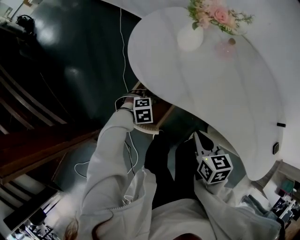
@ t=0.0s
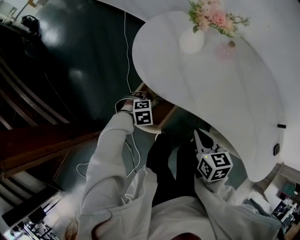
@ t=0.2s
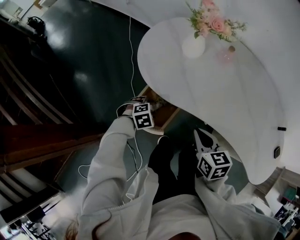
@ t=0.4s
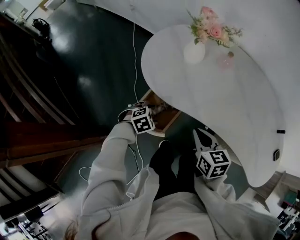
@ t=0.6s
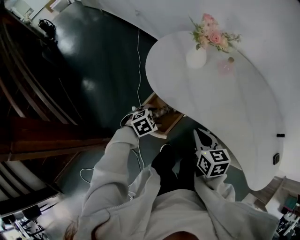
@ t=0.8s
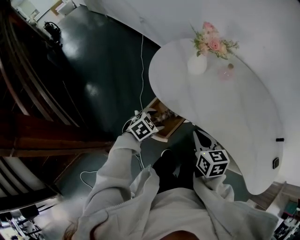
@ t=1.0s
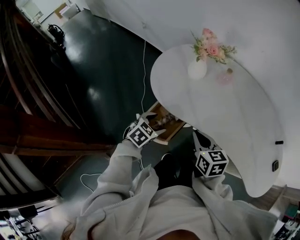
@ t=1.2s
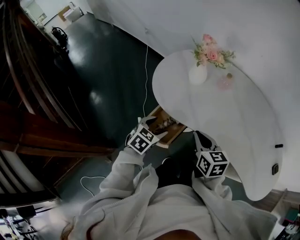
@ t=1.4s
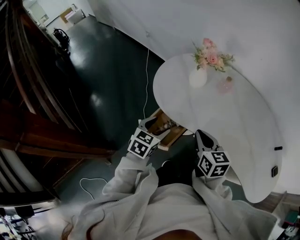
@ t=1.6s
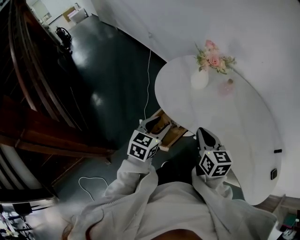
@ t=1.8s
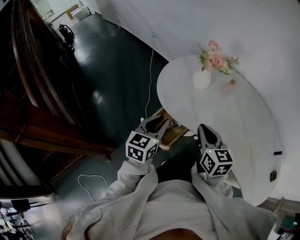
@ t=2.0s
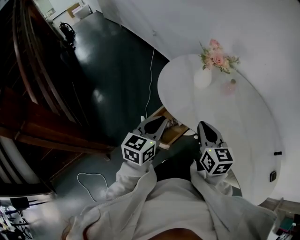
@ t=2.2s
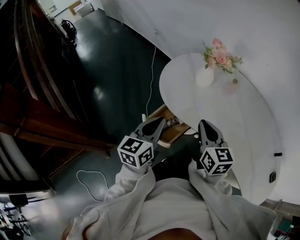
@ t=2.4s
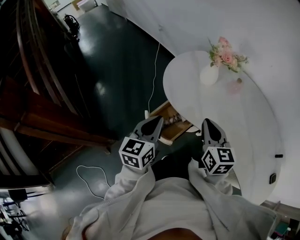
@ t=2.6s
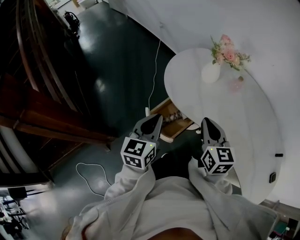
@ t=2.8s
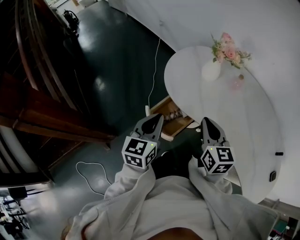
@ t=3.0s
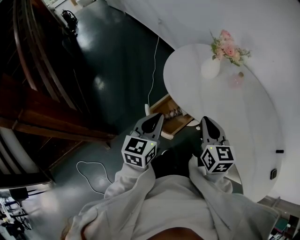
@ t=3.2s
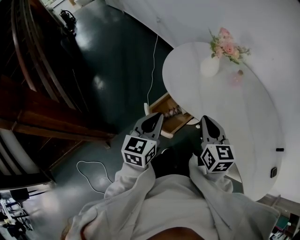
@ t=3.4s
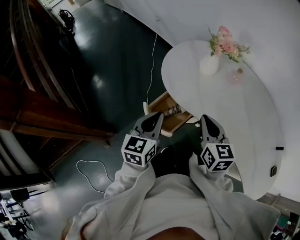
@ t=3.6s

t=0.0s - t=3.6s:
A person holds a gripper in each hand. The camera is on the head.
t=0.0s - t=1.8s: The left gripper heads upward, covering roughly 30 cm, points its fingers approximately 50 degrees further upward, and closes. The right gripper is displaced upward by about 10 cm, and changes its angle by some 20 degrees.
t=1.8s - t=3.6s: The left gripper changes place by roughly 5 cm, and closes up.

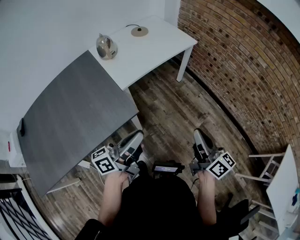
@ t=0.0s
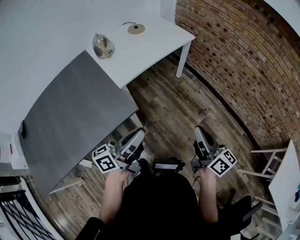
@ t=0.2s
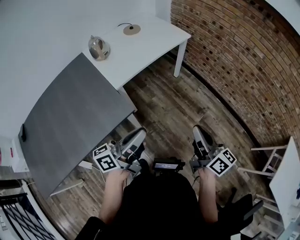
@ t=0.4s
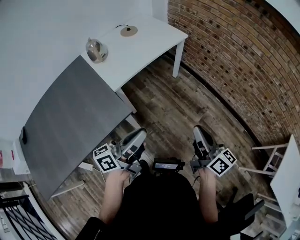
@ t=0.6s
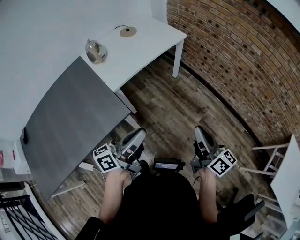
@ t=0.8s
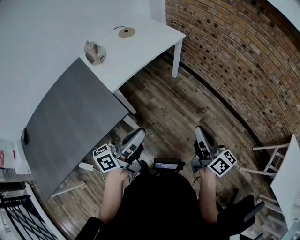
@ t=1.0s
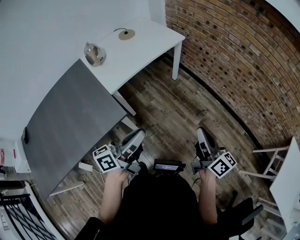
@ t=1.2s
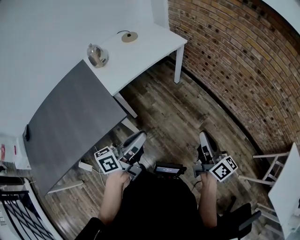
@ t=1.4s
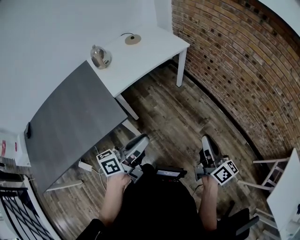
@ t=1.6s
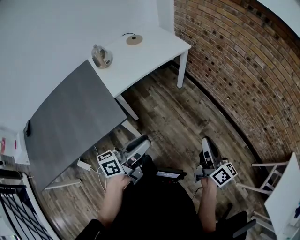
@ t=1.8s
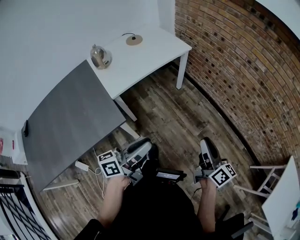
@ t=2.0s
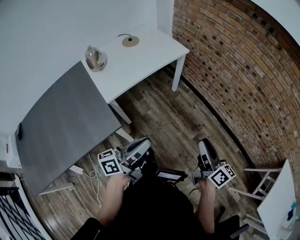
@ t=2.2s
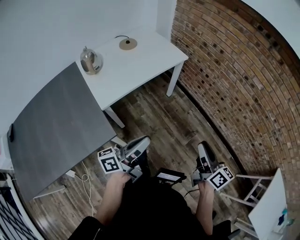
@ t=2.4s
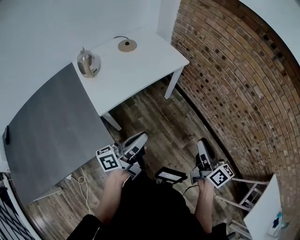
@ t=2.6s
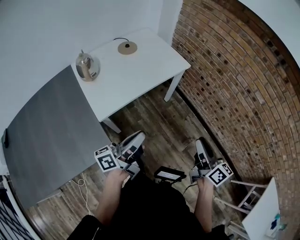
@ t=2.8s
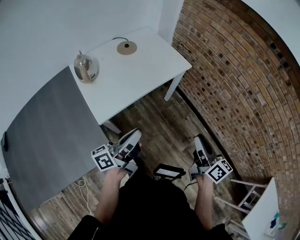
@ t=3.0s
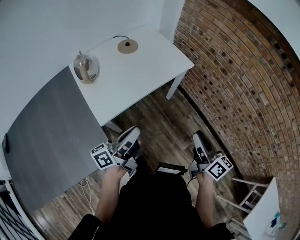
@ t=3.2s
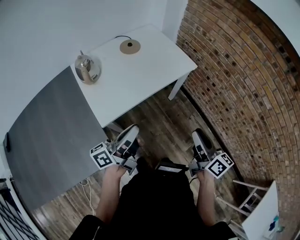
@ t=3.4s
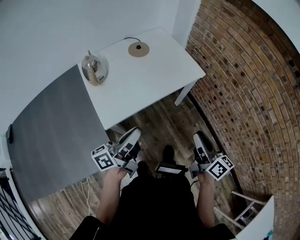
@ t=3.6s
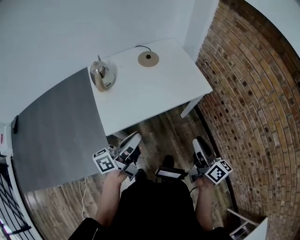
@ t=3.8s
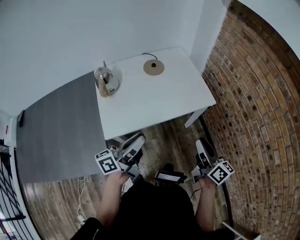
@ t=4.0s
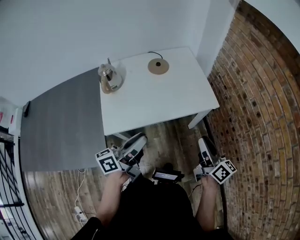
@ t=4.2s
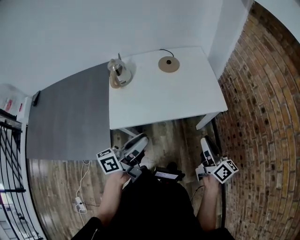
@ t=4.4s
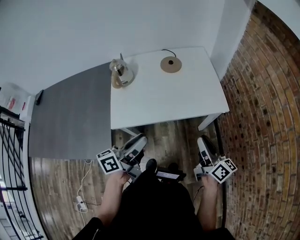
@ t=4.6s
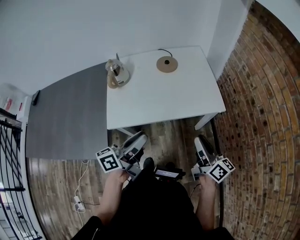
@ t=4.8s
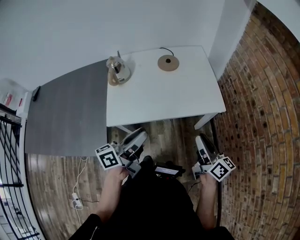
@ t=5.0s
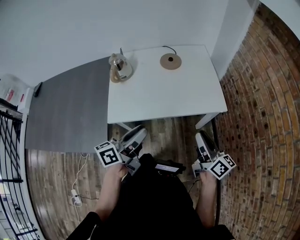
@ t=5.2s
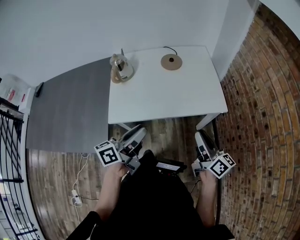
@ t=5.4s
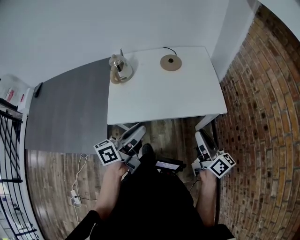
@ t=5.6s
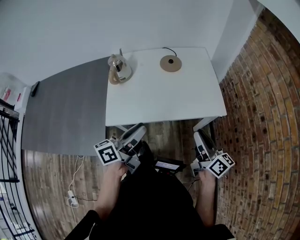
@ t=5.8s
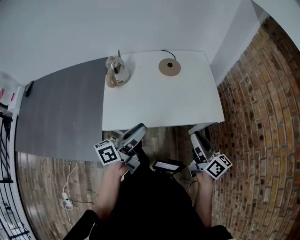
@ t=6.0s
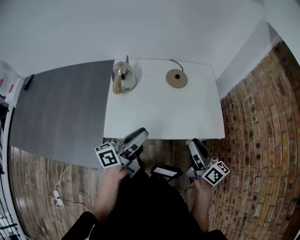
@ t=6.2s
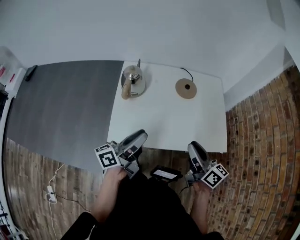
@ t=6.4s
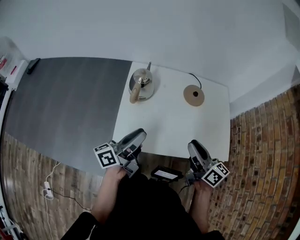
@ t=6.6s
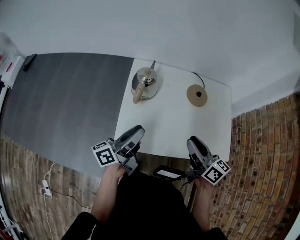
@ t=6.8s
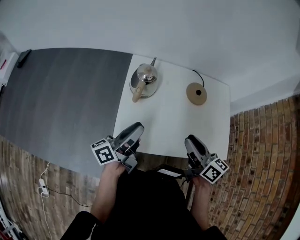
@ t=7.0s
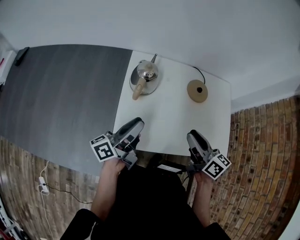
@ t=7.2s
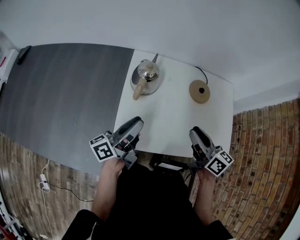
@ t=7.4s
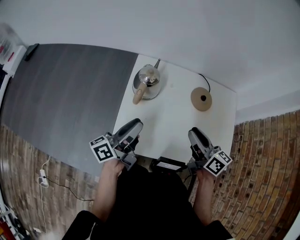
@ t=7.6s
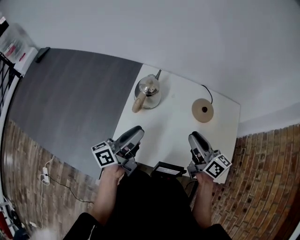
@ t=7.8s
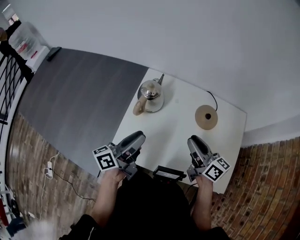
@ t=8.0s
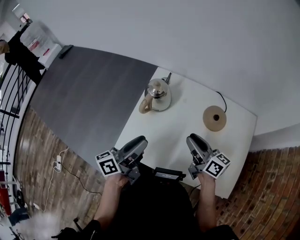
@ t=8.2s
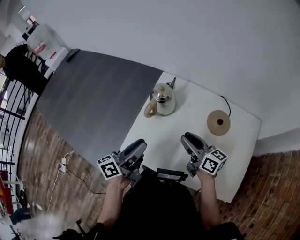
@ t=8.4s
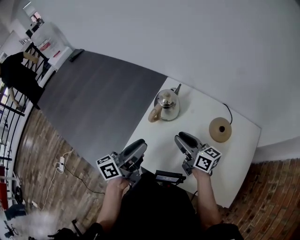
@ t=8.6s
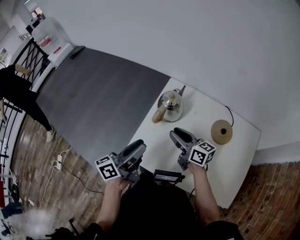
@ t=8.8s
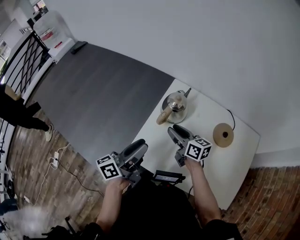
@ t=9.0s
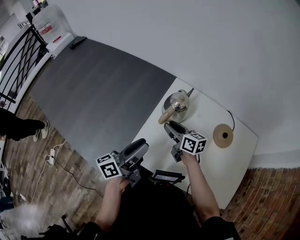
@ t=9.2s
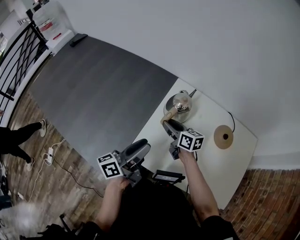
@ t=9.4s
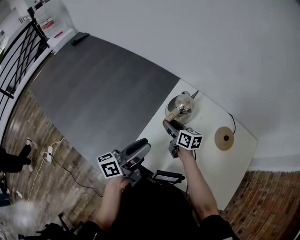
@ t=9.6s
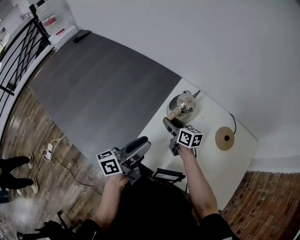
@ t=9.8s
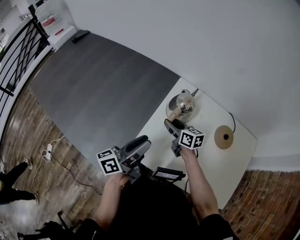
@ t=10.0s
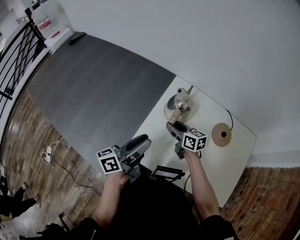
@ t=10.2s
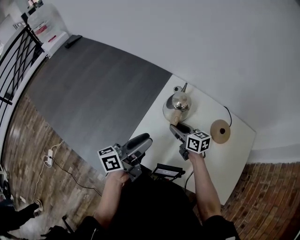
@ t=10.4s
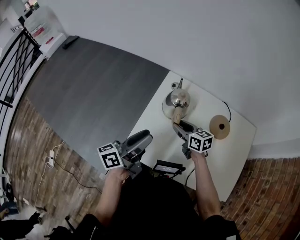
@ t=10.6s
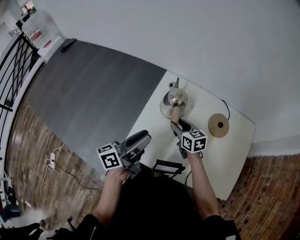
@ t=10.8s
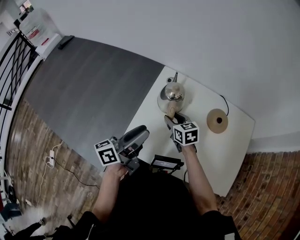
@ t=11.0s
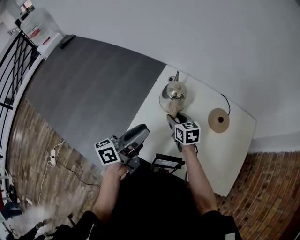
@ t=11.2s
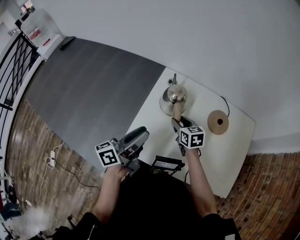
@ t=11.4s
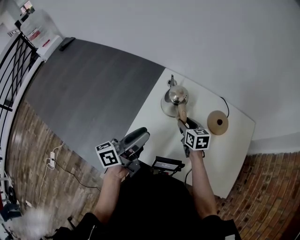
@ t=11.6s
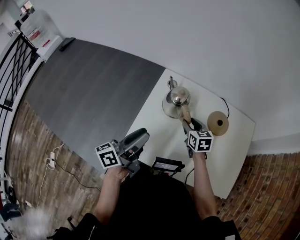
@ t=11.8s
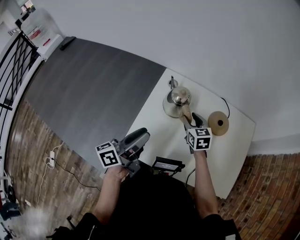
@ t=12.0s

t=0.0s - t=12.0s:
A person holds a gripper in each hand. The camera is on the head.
t=0.0s - t=1.6s: The two grippers go approximately 15 cm to the right.
t=1.6s - t=3.0s: Both grippers move forward, about 25 cm. The right gripper opens its fingers.
t=3.0s - t=4.4s: The left gripper moves about 10 cm, turns by about 30 degrees, and opens; the right gripper shifts by roughly 25 cm, and swivels some 30 degrees.
t=4.4s - t=6.0s: Both grippers move forward, some 5 cm.
t=6.0s - t=7.6s: Both grippers travel together forward and to the left, about 25 cm. The left gripper changes its angle by roughly 20 degrees. The right gripper swivels about 20 degrees.
t=7.6s - t=9.0s: The right gripper is displaced to the left, forward and downward by approximately 20 cm, and changes its angle by about 30 degrees.
t=9.0s - t=10.4s: The right gripper travels downward by approximately 5 cm.
t=10.4s - t=12.0s: The right gripper is displaced to the right by roughly 10 cm, and rotates approximately 30 degrees.

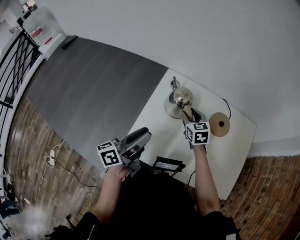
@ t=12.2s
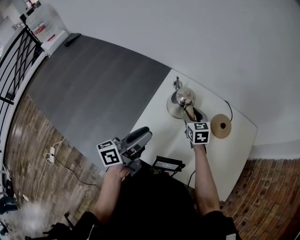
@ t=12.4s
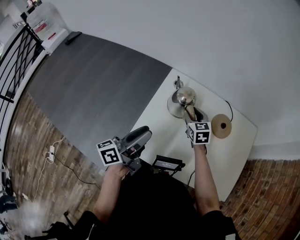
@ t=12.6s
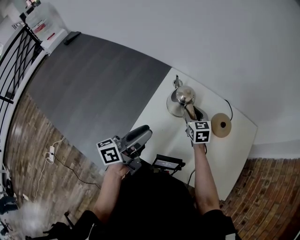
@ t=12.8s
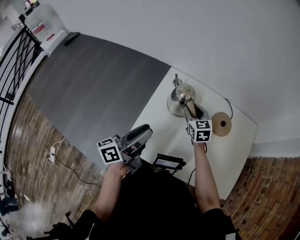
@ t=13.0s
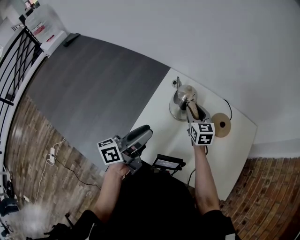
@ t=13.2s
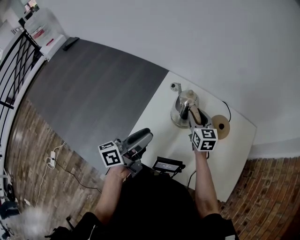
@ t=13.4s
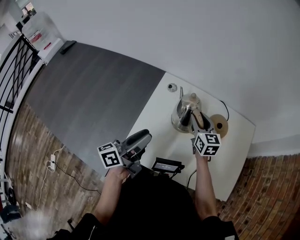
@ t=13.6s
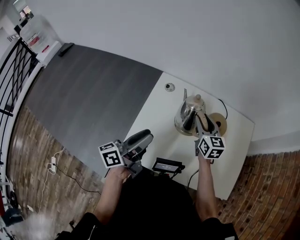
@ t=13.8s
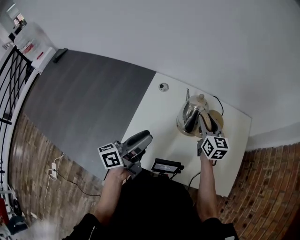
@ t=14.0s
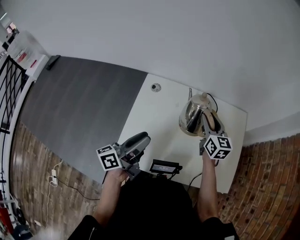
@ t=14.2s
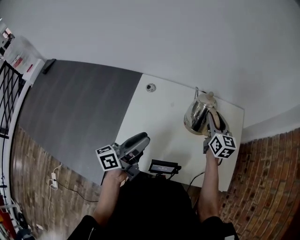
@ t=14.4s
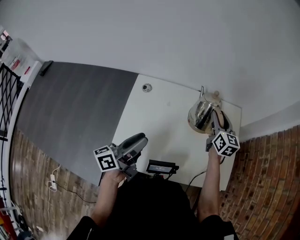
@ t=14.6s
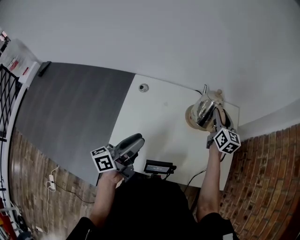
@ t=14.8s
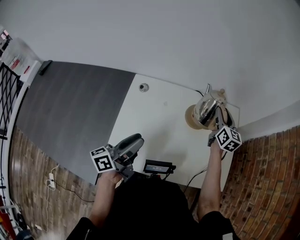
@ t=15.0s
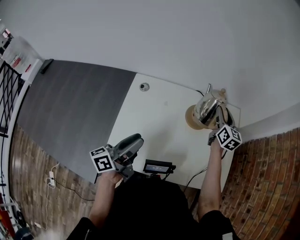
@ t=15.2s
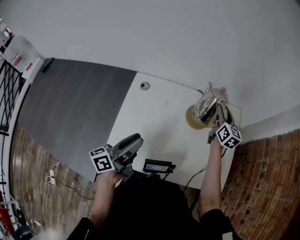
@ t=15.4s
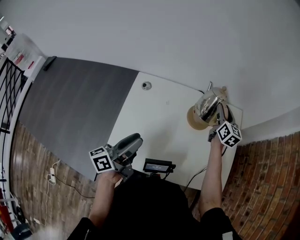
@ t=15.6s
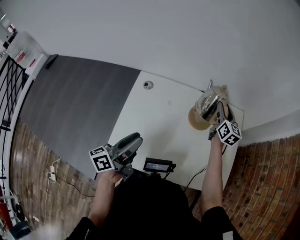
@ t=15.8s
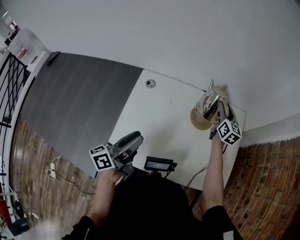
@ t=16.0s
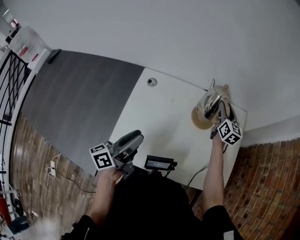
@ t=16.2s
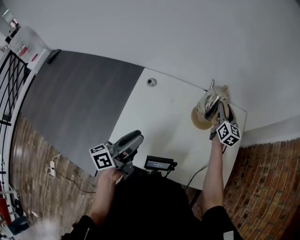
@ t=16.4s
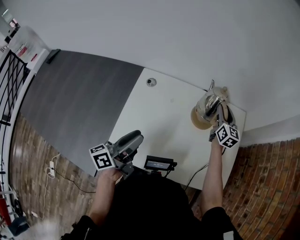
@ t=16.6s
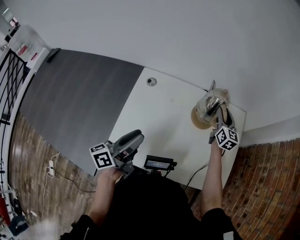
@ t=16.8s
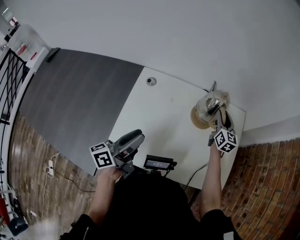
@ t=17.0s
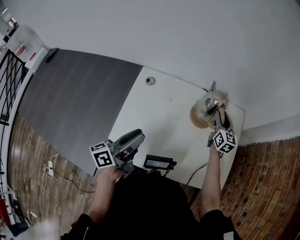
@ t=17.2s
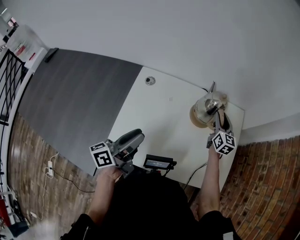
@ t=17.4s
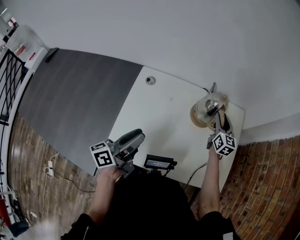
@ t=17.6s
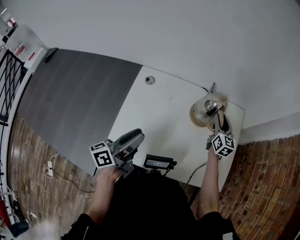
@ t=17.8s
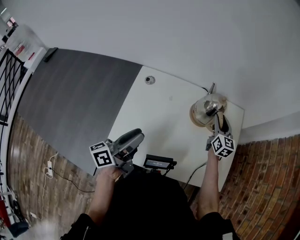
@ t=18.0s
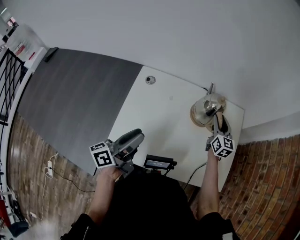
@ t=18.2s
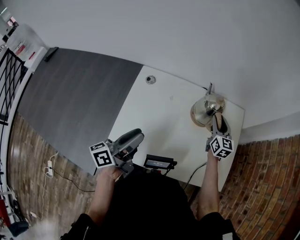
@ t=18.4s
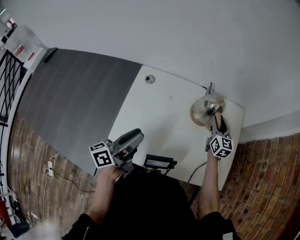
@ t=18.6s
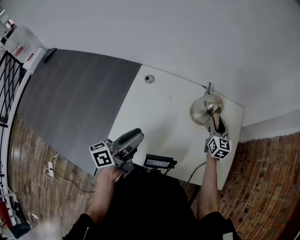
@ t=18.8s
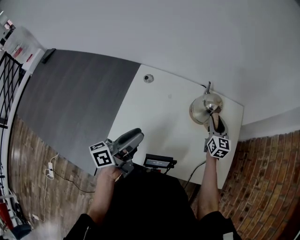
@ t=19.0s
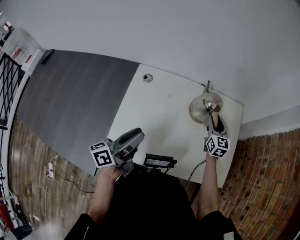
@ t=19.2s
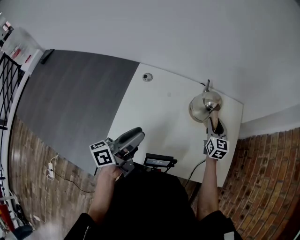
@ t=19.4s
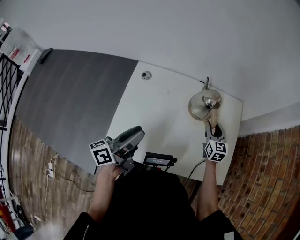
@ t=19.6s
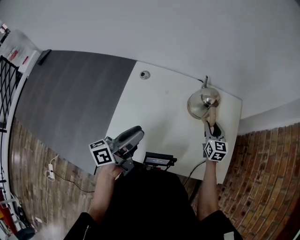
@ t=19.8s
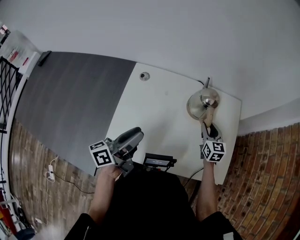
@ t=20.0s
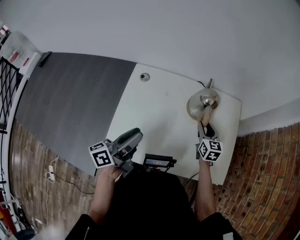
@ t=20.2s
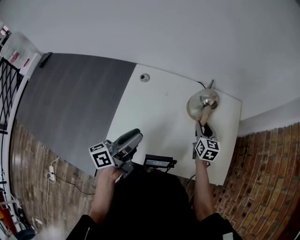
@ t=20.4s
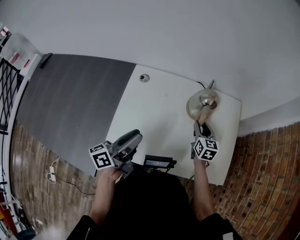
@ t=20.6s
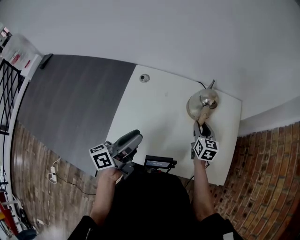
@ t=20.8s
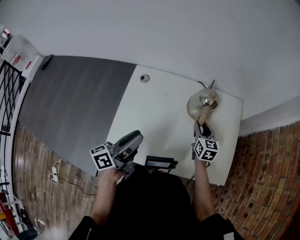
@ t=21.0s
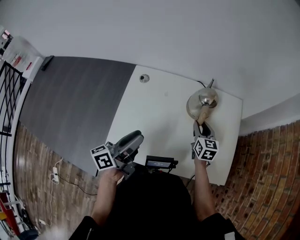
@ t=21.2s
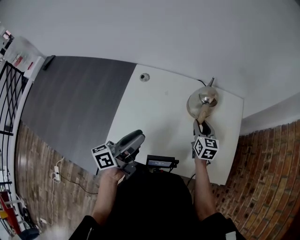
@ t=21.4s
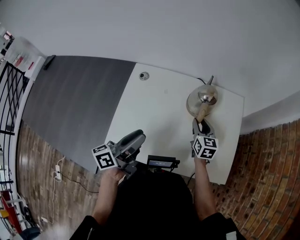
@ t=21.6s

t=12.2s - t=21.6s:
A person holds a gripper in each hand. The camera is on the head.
t=12.2s - t=13.8s: The right gripper heads to the right and upward, covering some 10 cm.
t=13.8s - t=15.4s: The left gripper moves to the right, some 5 cm; the right gripper moves to the right and forward, about 25 cm, and rotates roughly 30 degrees.
t=15.4s - t=17.0s: The grippers make only small movements.
t=17.0s - t=18.4s: The grippers make only small movements.
t=18.4s - t=20.0s: The right gripper travels backward by roughly 5 cm.
t=20.0s - t=21.6s: The grippers make only small movements.
